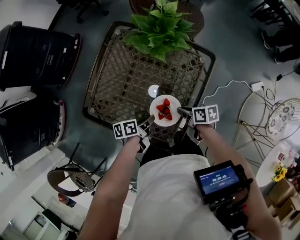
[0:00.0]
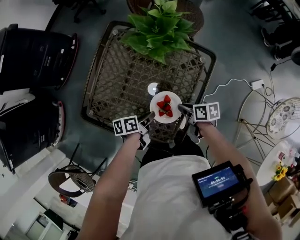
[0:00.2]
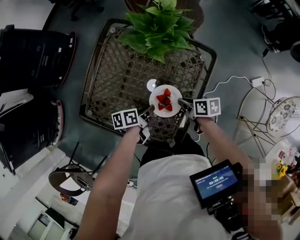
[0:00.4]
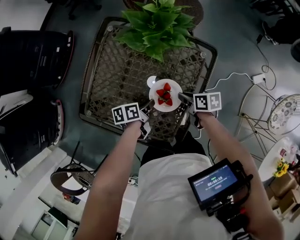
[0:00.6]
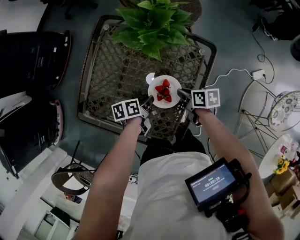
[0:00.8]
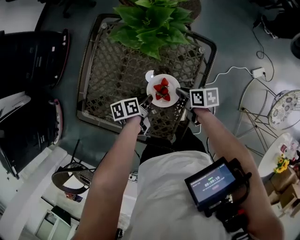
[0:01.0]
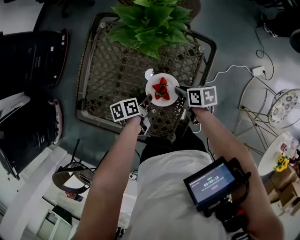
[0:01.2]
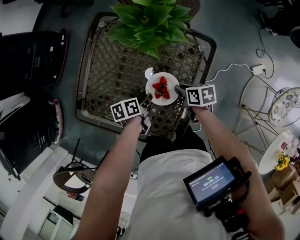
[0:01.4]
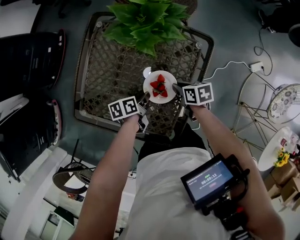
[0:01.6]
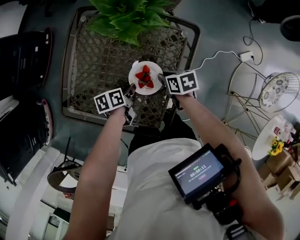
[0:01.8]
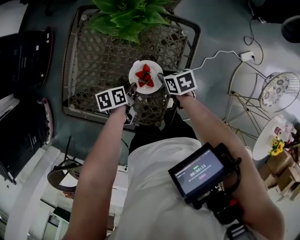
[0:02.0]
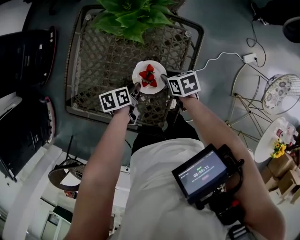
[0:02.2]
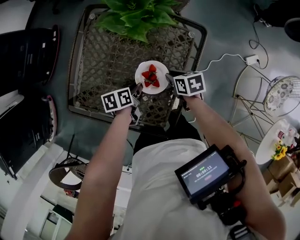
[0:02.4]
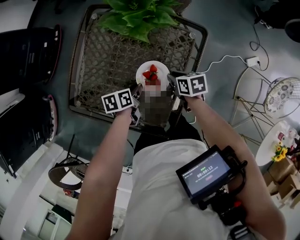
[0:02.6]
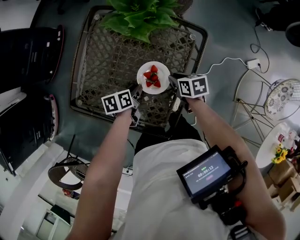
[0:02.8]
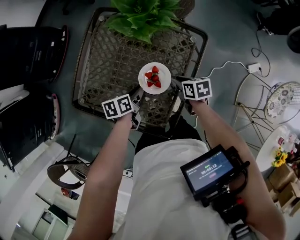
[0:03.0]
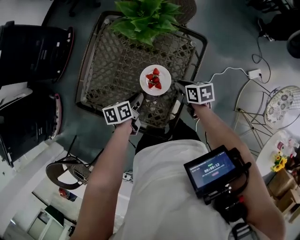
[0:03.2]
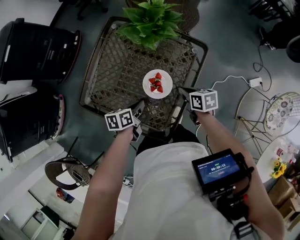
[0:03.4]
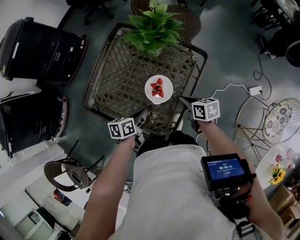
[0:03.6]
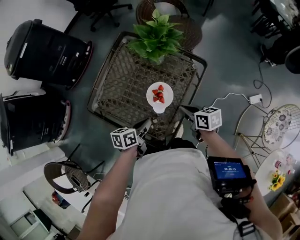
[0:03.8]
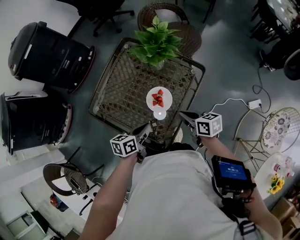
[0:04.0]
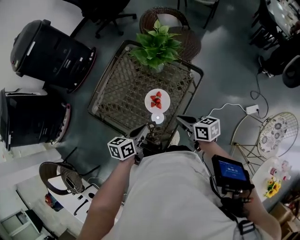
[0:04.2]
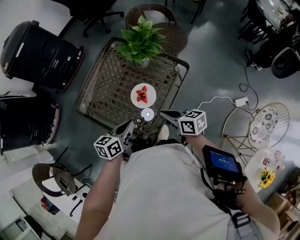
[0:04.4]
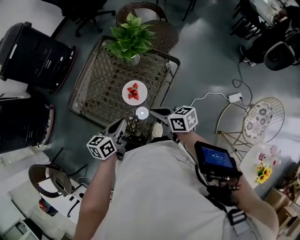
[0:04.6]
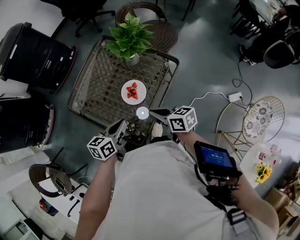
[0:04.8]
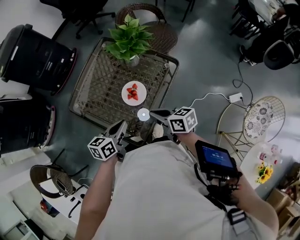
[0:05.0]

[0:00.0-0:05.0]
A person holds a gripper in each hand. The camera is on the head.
0:00.0 to 0:01.6: The right gripper changes place by roughly 10 cm.
0:01.6 to 0:03.4: The right gripper travels upward by roughly 5 cm.
0:03.4 to 0:05.0: The right gripper shifts about 15 cm upward, and swivels approximately 30 degrees.

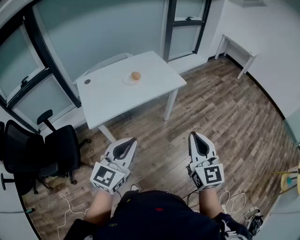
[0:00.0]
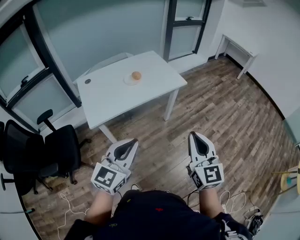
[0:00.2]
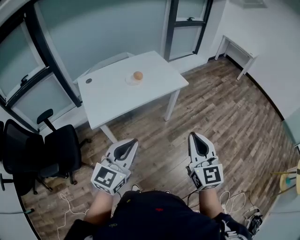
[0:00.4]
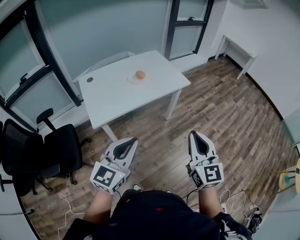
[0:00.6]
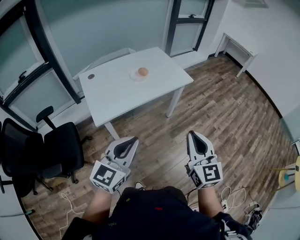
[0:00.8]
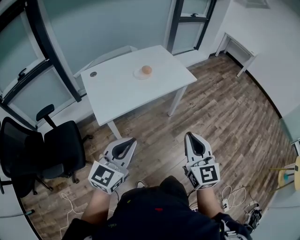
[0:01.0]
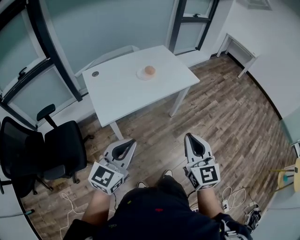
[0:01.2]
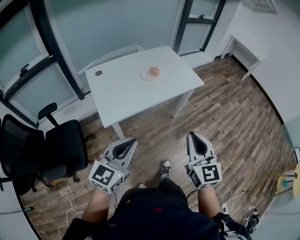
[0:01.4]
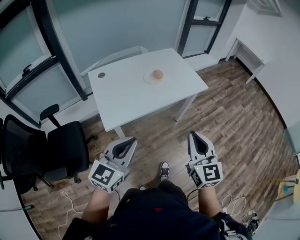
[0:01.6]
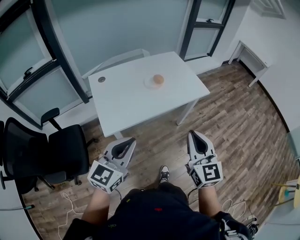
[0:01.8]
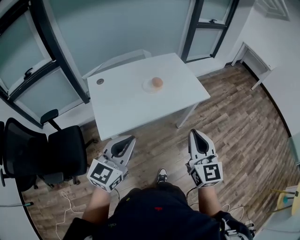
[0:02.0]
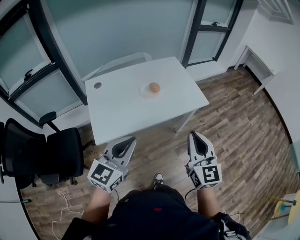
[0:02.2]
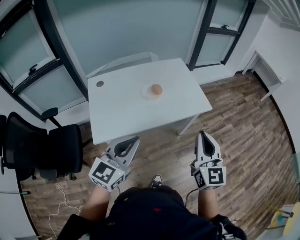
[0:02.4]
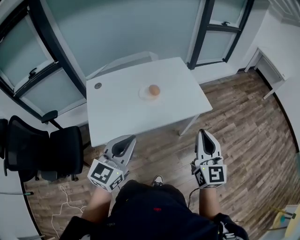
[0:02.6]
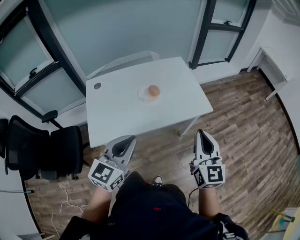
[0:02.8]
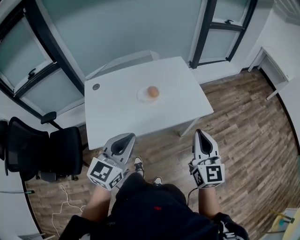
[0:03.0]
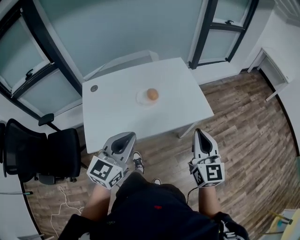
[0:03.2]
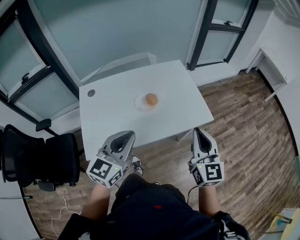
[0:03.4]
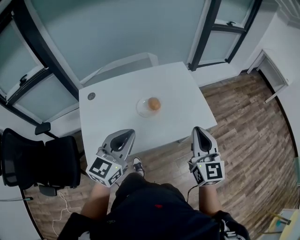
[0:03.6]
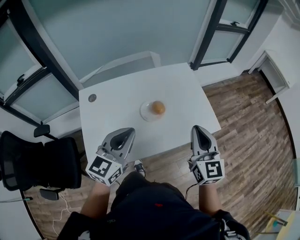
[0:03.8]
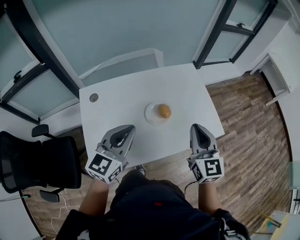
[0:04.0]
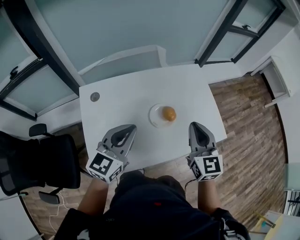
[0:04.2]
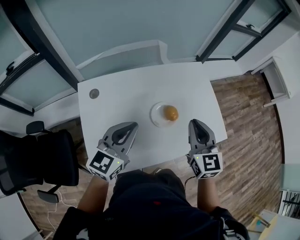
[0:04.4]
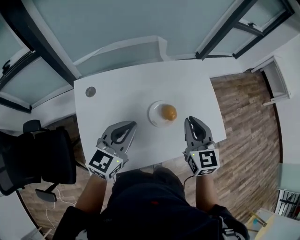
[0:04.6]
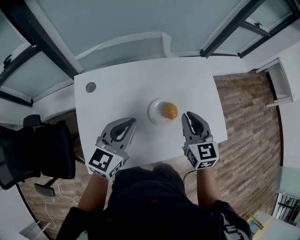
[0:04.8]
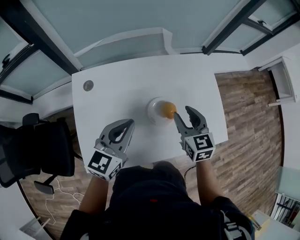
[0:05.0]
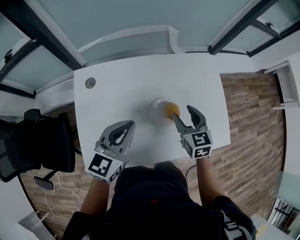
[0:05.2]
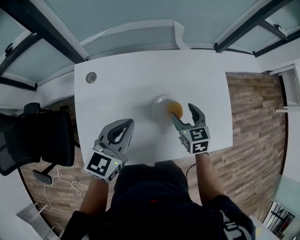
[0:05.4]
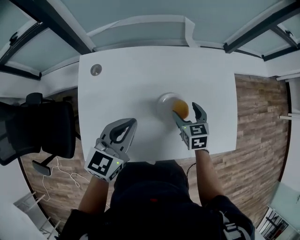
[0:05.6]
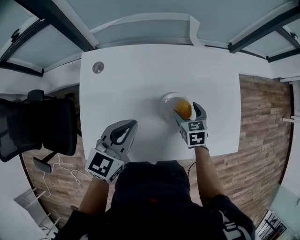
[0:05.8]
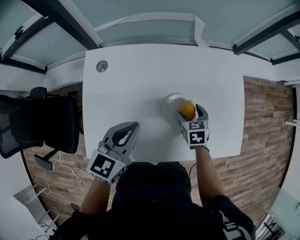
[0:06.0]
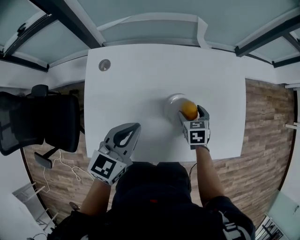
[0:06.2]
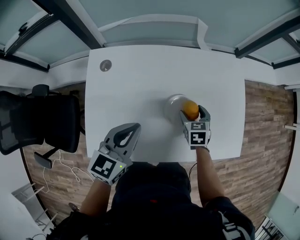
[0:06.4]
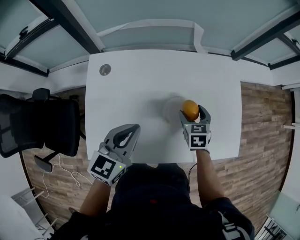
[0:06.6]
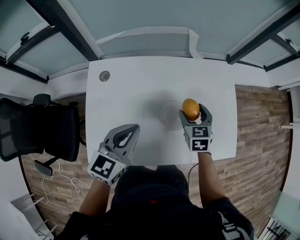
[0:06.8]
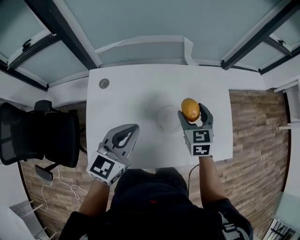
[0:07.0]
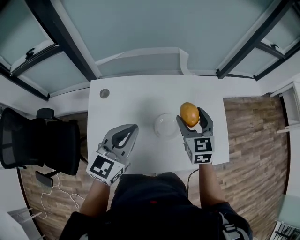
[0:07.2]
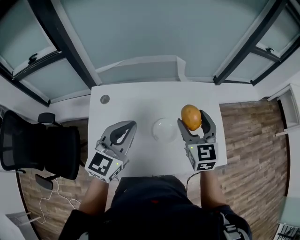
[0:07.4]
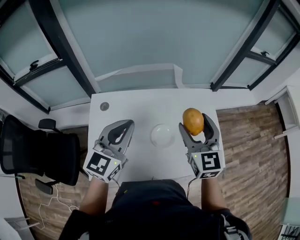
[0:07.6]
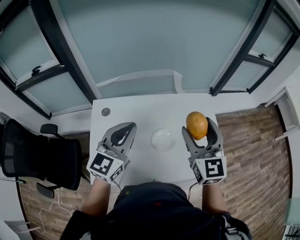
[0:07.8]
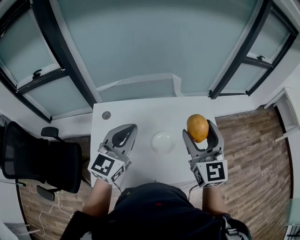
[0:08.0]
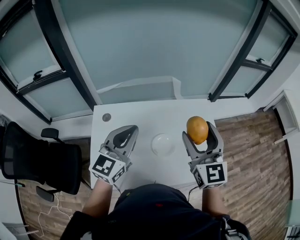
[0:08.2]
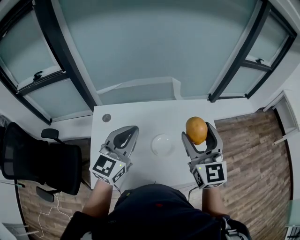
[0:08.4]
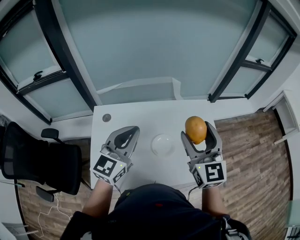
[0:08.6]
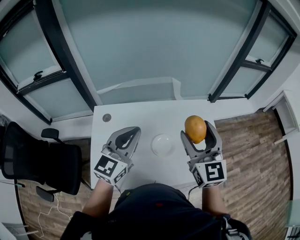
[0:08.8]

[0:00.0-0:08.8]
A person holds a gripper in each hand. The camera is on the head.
0:00.0 to 0:01.4: Both grippers move to the left, some 20 cm.
0:01.4 to 0:03.0: The two grippers go about 35 cm forward and to the right.
0:03.0 to 0:04.4: Both grippers travel together forward and to the left, approximately 35 cm.
0:04.4 to 0:05.8: The left gripper moves downward, approximately 10 cm, and swivels about 20 degrees. Meanwhile the right gripper shifts approximately 30 cm downward and forward, angles its fingers downward, by some 30 degrees, and opens up.
0:05.8 to 0:07.4: The left gripper is displaced upward by approximately 15 cm, and rotates some 20 degrees, while the right gripper is displaced upward by some 30 cm, and tilts its fingers about 30 degrees upward.
0:07.4 to 0:08.8: The left gripper moves about 5 cm; the right gripper moves upward and backward, about 10 cm.

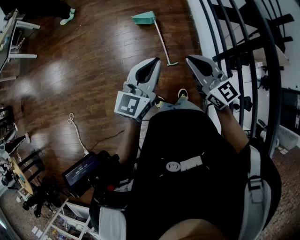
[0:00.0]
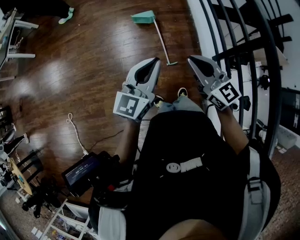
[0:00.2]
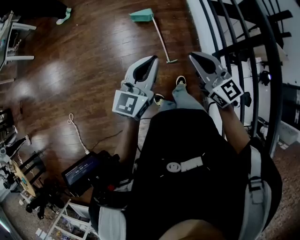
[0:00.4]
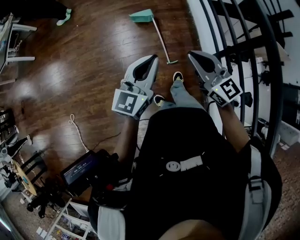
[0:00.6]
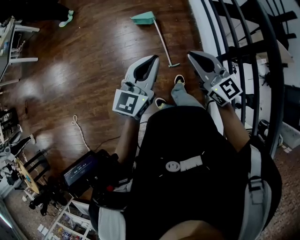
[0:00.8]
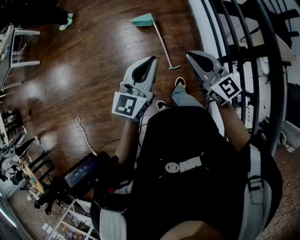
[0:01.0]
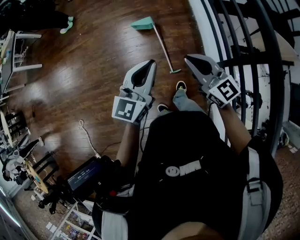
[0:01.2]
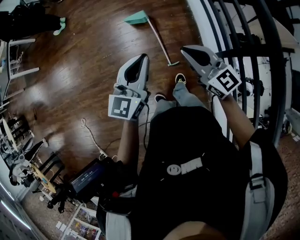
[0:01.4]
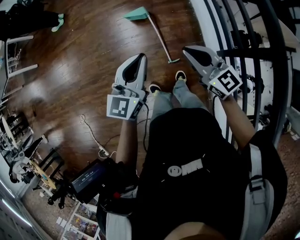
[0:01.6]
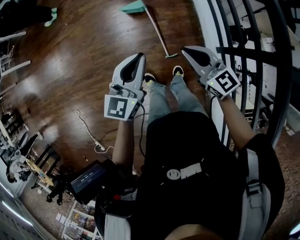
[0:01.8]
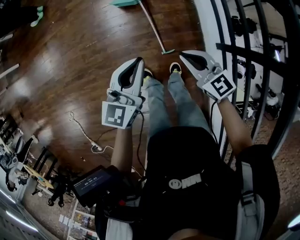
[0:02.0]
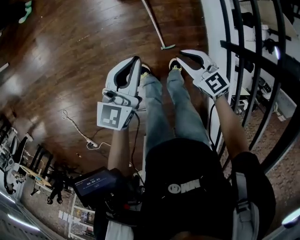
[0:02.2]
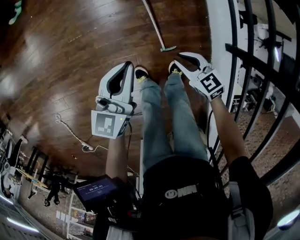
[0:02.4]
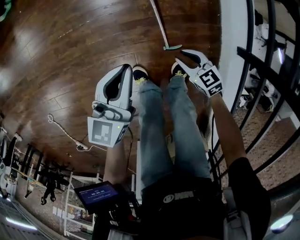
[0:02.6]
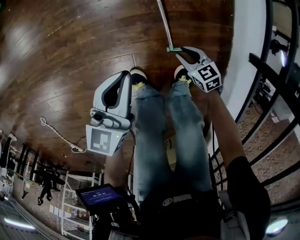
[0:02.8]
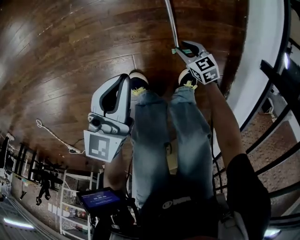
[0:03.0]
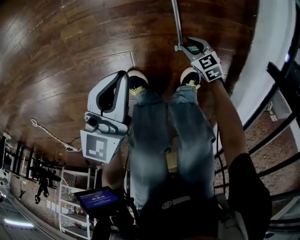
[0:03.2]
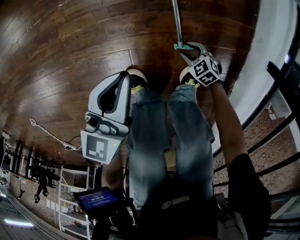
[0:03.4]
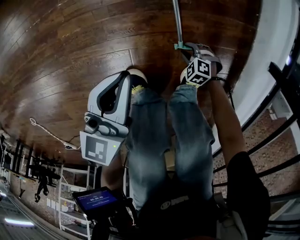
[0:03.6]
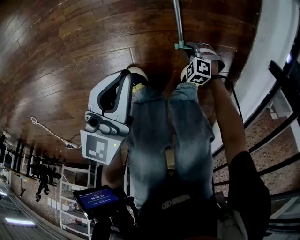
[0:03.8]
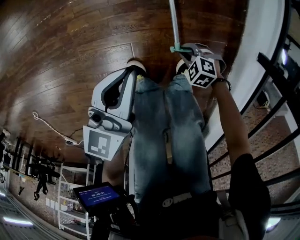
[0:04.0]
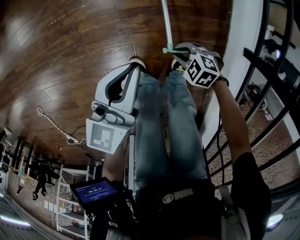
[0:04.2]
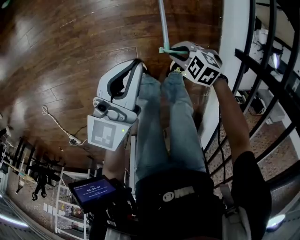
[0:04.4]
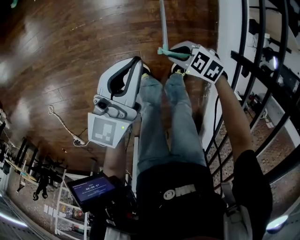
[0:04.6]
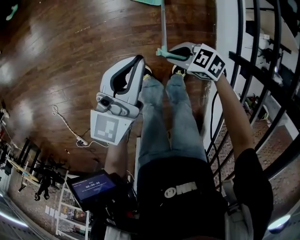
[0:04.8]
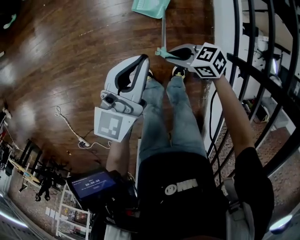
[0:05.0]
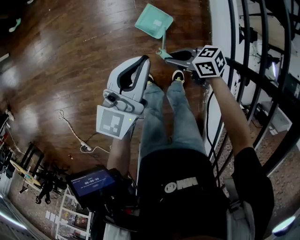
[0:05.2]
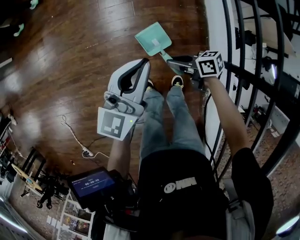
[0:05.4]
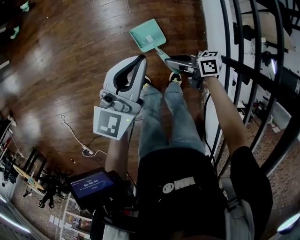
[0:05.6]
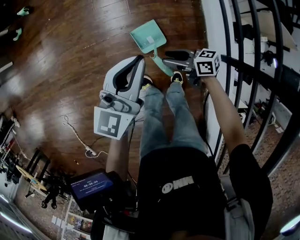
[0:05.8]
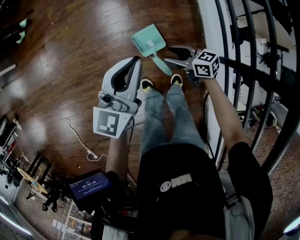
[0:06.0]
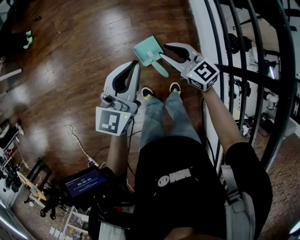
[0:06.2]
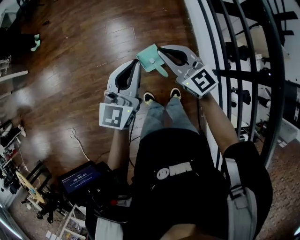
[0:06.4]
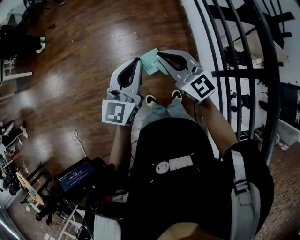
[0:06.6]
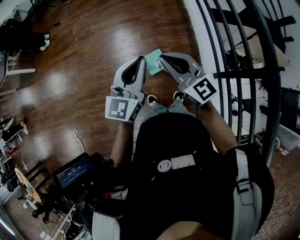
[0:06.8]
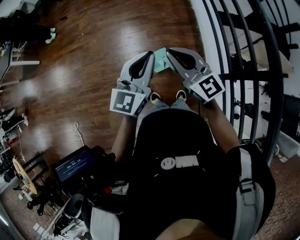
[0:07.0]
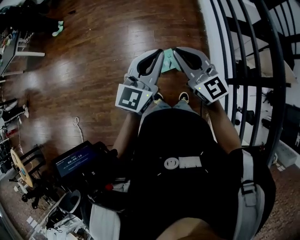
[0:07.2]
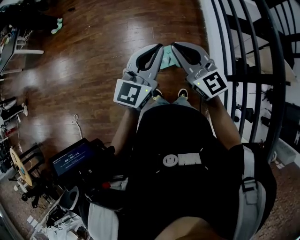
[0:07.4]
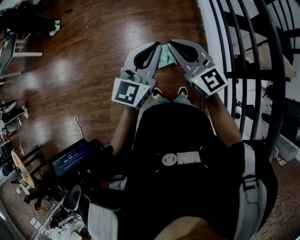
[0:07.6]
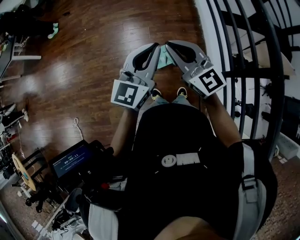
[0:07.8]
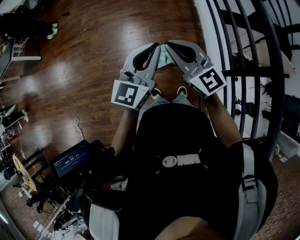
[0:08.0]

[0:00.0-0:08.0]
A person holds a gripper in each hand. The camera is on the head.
0:00.0 to 0:01.6: The right gripper travels to the right by some 10 cm. Meanwhile the left gripper moves to the right, about 5 cm.
0:01.6 to 0:03.2: The right gripper heads downward and backward, covering roughly 40 cm, points its fingers roughly 50 degrees further downward, and opens up. Meanwhile the left gripper travels downward, backward and to the left by about 15 cm.
0:03.2 to 0:04.8: The left gripper goes approximately 10 cm upward, while the right gripper goes some 20 cm upward, and changes its angle by roughly 30 degrees.
0:04.8 to 0:06.4: The left gripper goes downward and returns, some 5 cm each way, while the right gripper goes about 20 cm upward, points its fingers roughly 40 degrees further upward, and opens, then closes once more.
0:06.4 to 0:08.0: The right gripper goes roughly 10 cm upward and backward. The left gripper shifts some 5 cm upward.

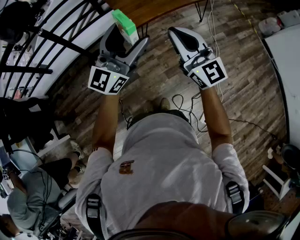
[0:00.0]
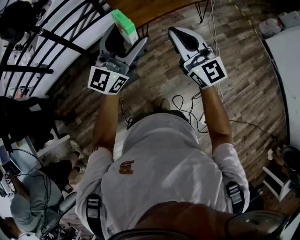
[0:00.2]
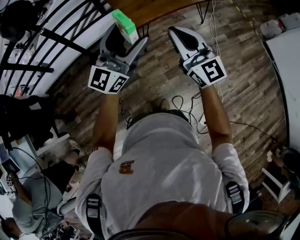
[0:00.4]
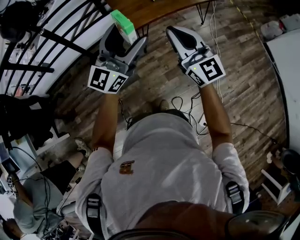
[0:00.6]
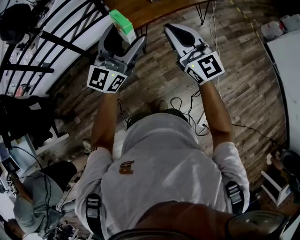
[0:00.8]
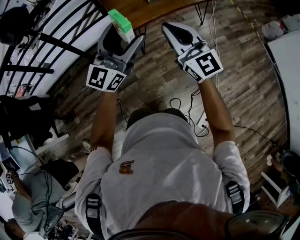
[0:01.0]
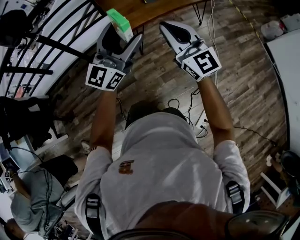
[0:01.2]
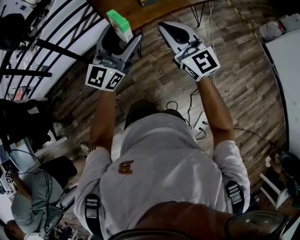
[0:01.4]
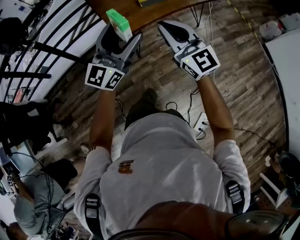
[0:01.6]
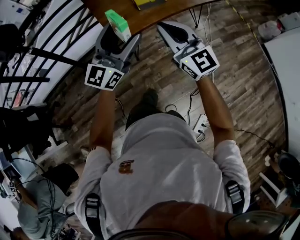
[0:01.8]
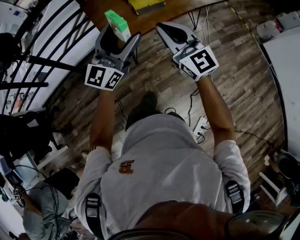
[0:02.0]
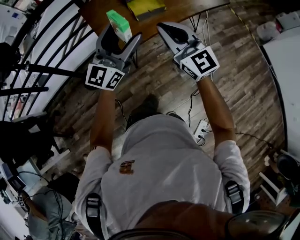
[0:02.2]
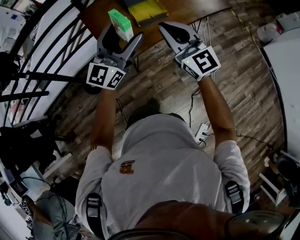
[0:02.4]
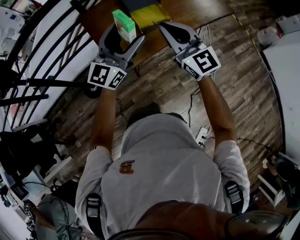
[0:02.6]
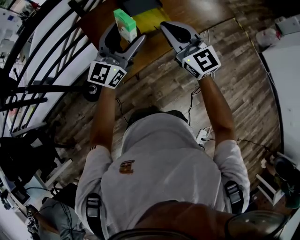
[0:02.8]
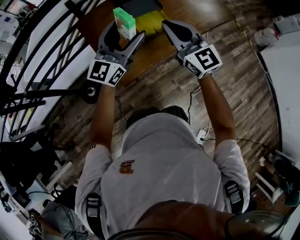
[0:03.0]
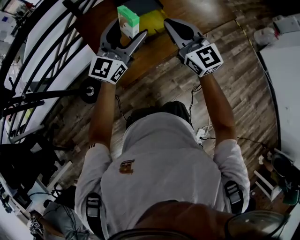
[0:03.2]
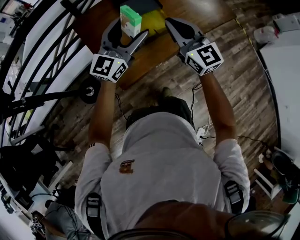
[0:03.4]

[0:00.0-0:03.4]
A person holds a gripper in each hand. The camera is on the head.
0:00.0 to 0:01.6: The grippers both shift to the right and forward by approximately 15 cm.
0:01.6 to 0:03.4: The pair of grippers is taken forward, some 40 cm.
